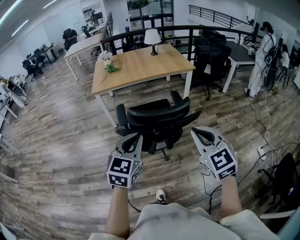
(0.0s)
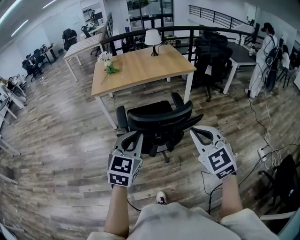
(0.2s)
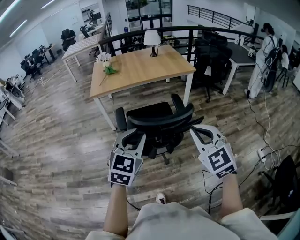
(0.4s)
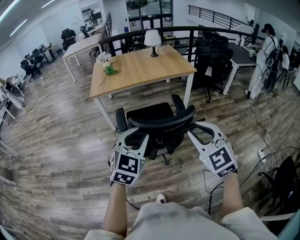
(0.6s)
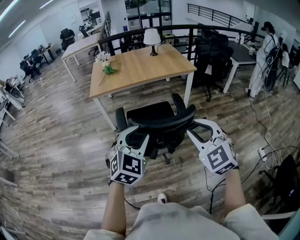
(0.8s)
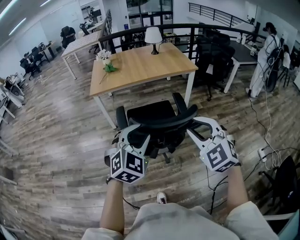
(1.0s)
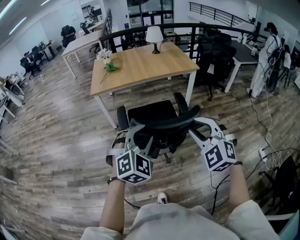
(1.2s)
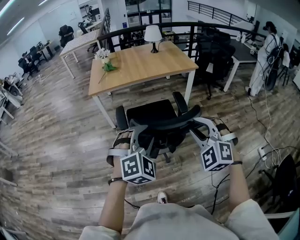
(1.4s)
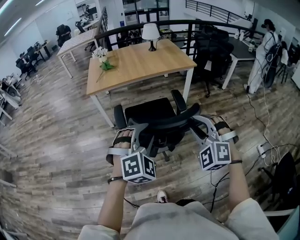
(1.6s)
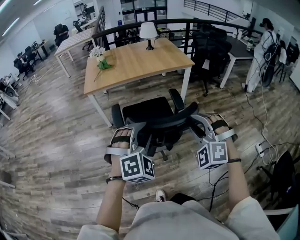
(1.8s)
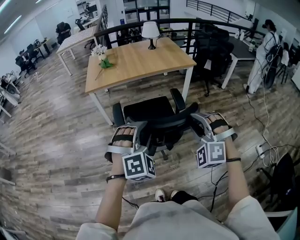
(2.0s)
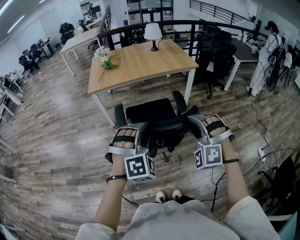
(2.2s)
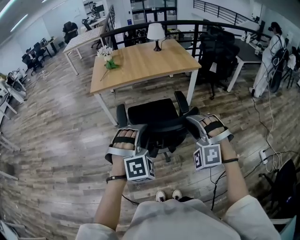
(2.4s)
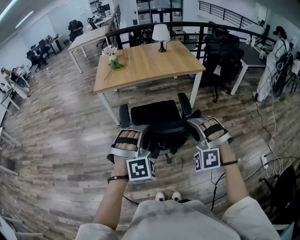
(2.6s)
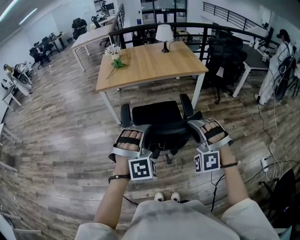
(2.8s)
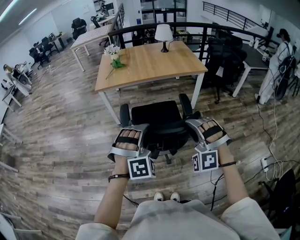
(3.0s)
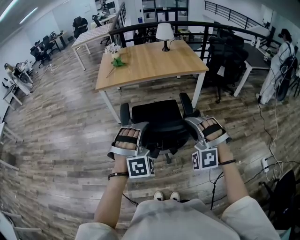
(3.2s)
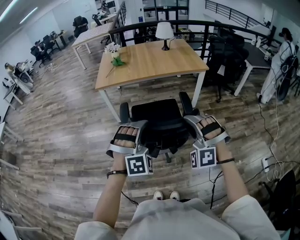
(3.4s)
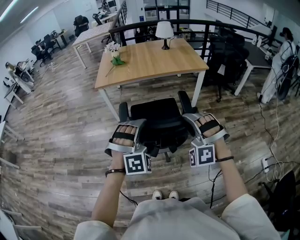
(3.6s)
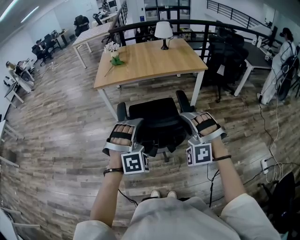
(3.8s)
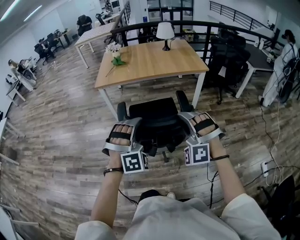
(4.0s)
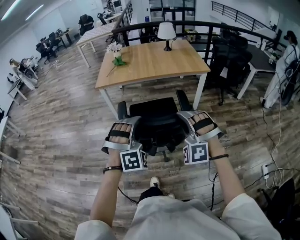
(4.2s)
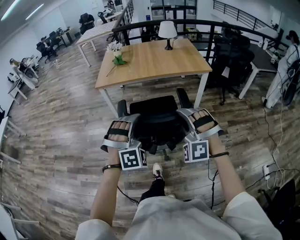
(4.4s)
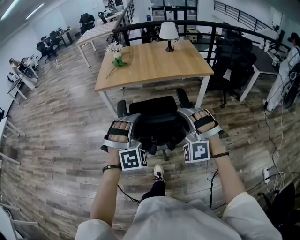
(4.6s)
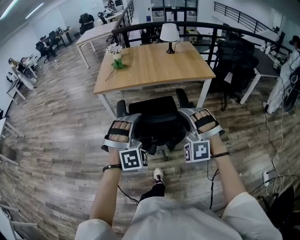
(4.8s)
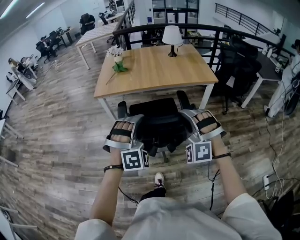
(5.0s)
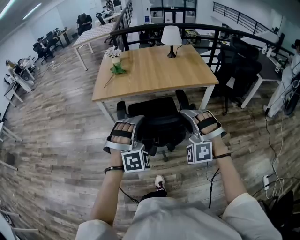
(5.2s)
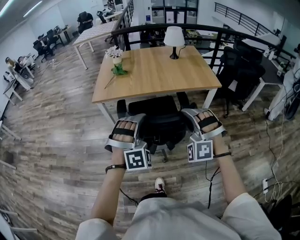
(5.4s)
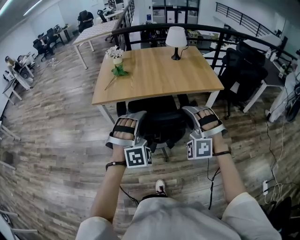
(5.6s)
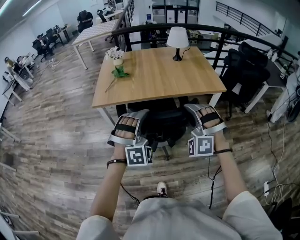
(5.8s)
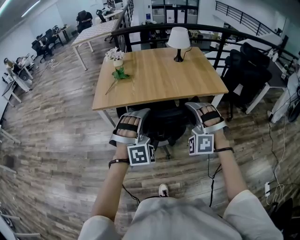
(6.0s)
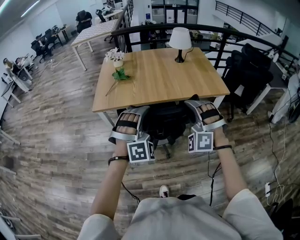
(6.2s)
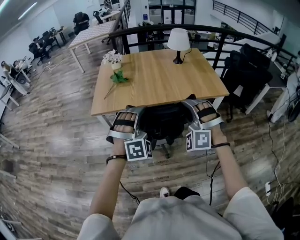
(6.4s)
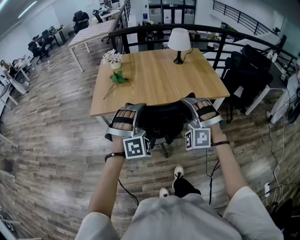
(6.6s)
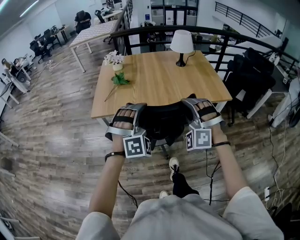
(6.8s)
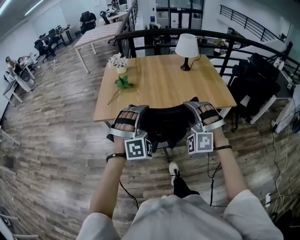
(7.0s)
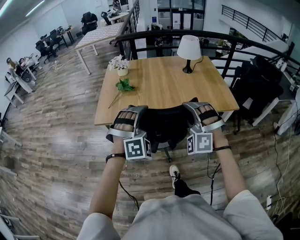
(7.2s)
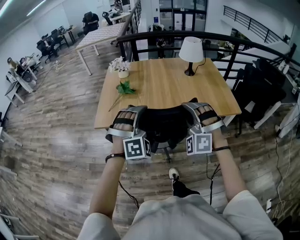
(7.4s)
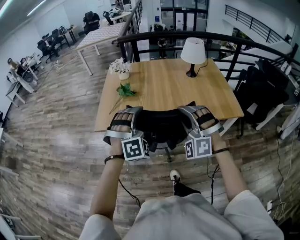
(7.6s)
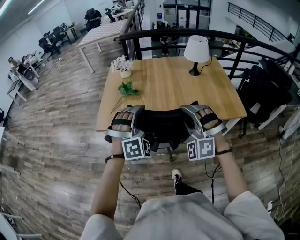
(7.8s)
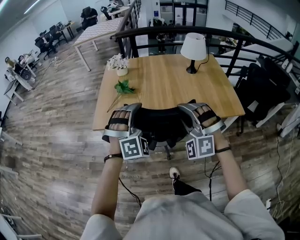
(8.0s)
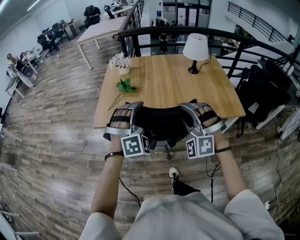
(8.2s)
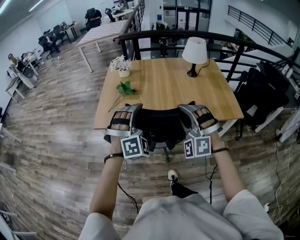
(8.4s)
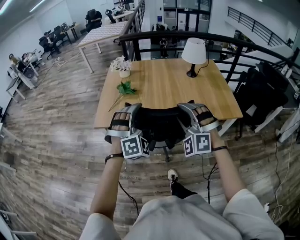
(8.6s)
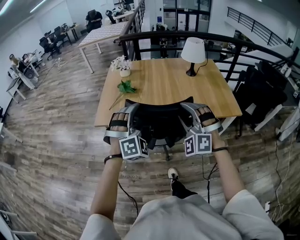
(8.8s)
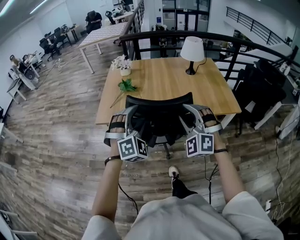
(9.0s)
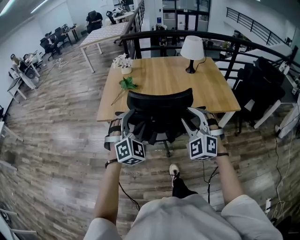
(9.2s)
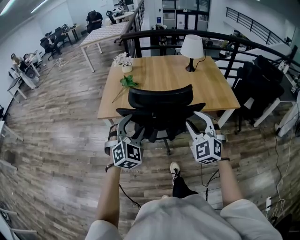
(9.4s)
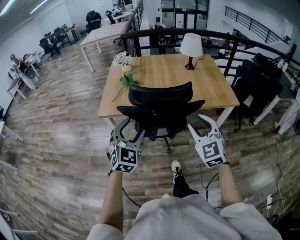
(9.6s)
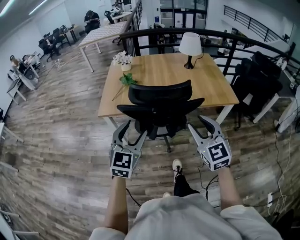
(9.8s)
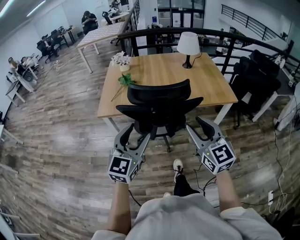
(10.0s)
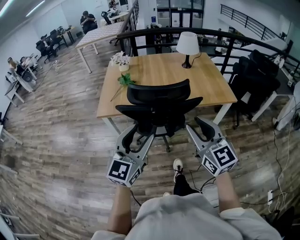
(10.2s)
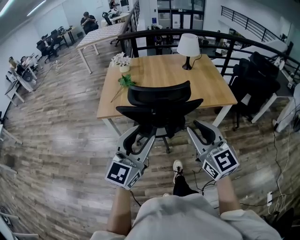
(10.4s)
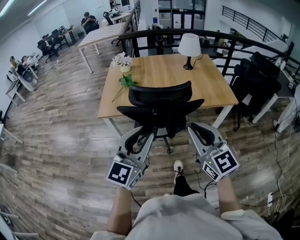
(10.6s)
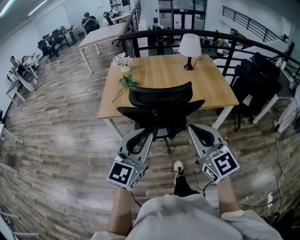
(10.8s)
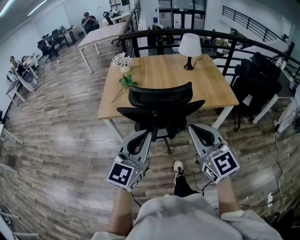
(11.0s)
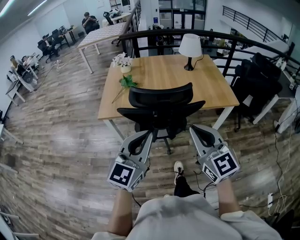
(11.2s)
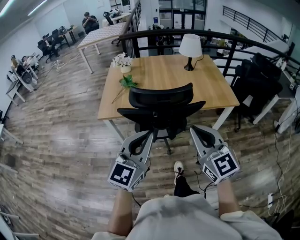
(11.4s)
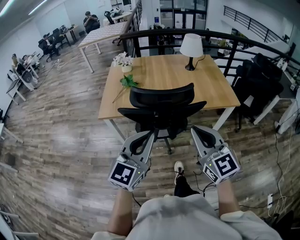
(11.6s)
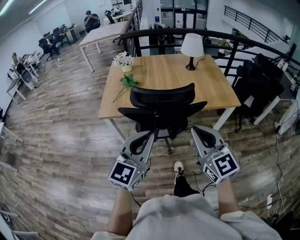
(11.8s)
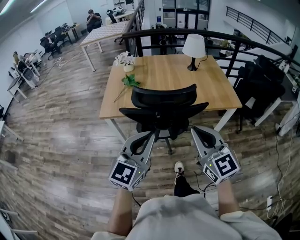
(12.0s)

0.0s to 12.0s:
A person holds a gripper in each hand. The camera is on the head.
0.0s to 1.6s: The two grippers go about 10 cm forward. The left gripper twists approximately 50 degrees clockwise, seen from behind, and opens, while the right gripper twists roughly 50 degrees counterclockwise, seen from behind, and opens its fingers.
1.6s to 3.0s: The right gripper turns by about 20 degrees; the left gripper swivels approximately 20 degrees.
3.0s to 4.4s: Both grippers move forward, approximately 5 cm.
4.4s to 6.0s: Both grippers travel together forward, about 30 cm.
6.0s to 7.6s: The grippers both shift forward by approximately 20 cm.
7.6s to 9.0s: The left gripper moves backward, some 5 cm, and opens its fingers; the right gripper changes place by approximately 5 cm.
9.0s to 10.4s: Both grippers move backward, some 15 cm. The right gripper rotates around the line of its fingers by some 60 degrees, clockwise from behind. The left gripper rotates around the line of its fingers by some 60 degrees, counterclockwise from behind.
10.4s to 12.0s: The left gripper closes; the right gripper closes.

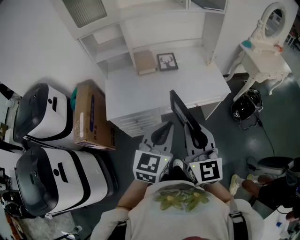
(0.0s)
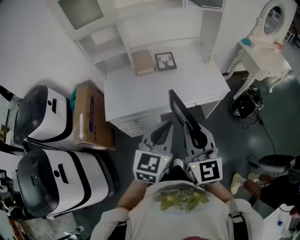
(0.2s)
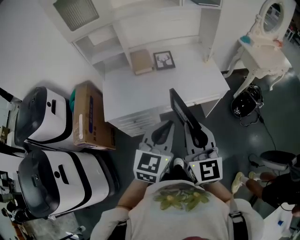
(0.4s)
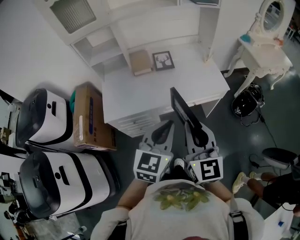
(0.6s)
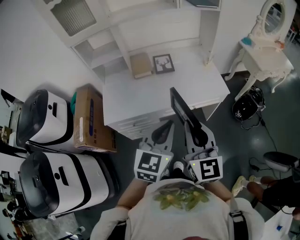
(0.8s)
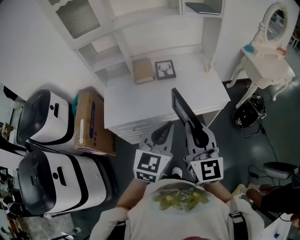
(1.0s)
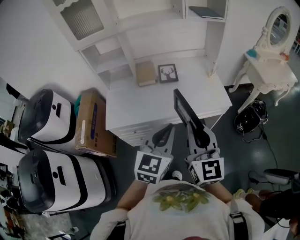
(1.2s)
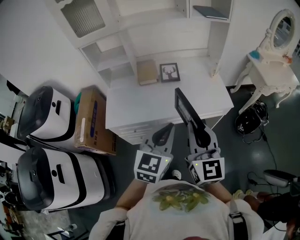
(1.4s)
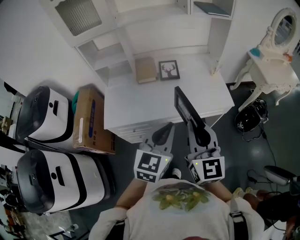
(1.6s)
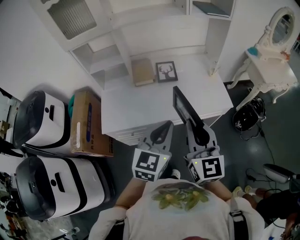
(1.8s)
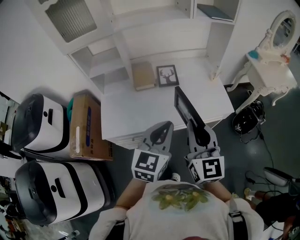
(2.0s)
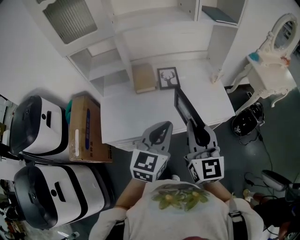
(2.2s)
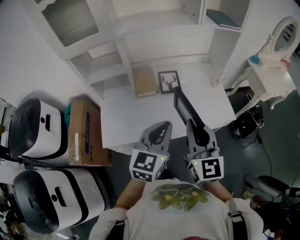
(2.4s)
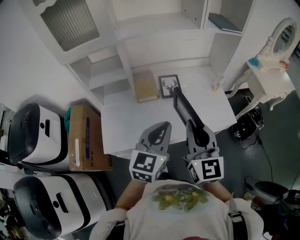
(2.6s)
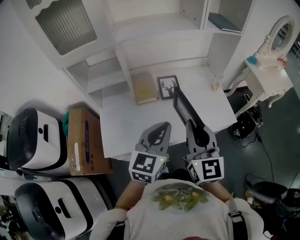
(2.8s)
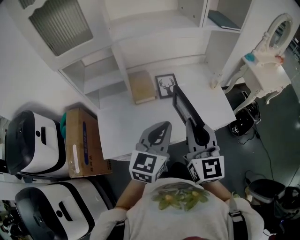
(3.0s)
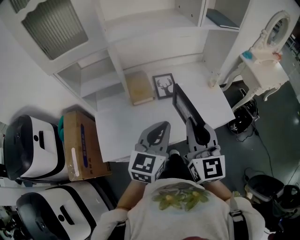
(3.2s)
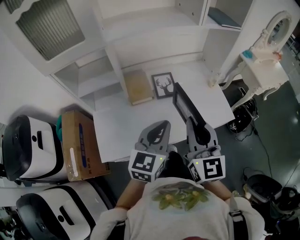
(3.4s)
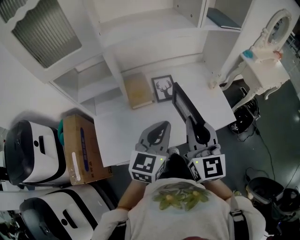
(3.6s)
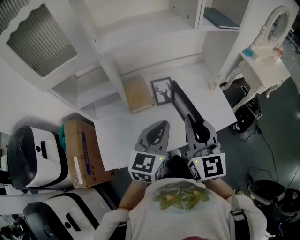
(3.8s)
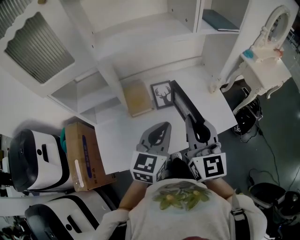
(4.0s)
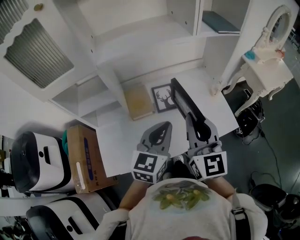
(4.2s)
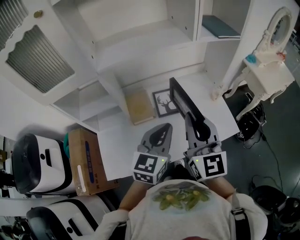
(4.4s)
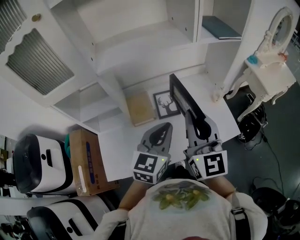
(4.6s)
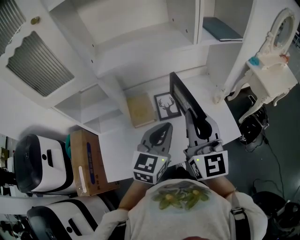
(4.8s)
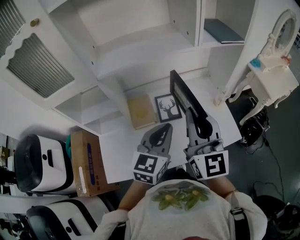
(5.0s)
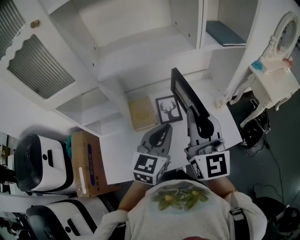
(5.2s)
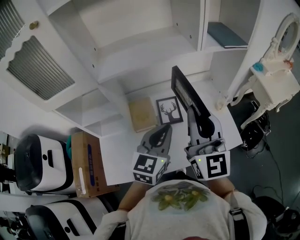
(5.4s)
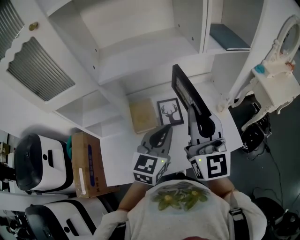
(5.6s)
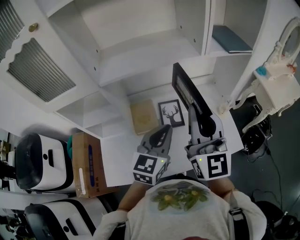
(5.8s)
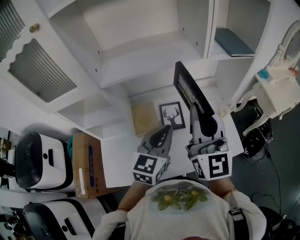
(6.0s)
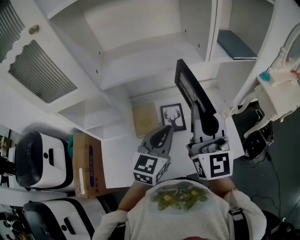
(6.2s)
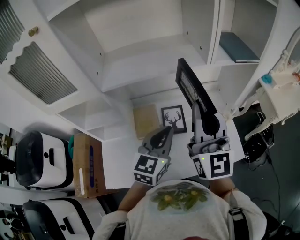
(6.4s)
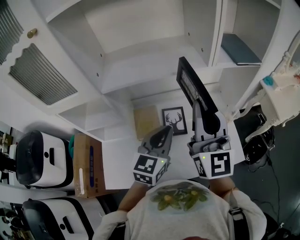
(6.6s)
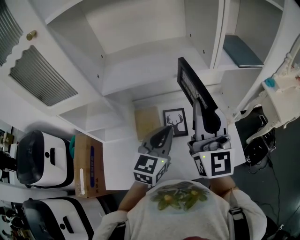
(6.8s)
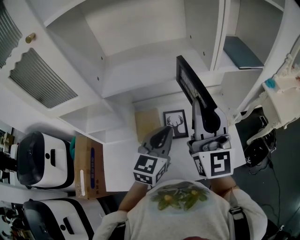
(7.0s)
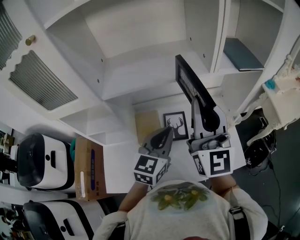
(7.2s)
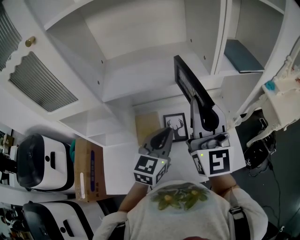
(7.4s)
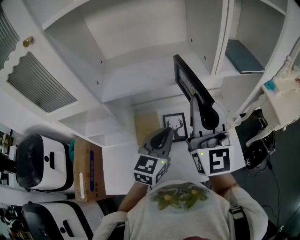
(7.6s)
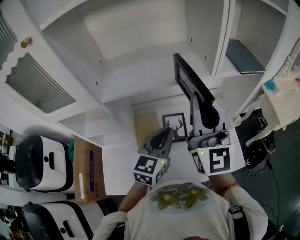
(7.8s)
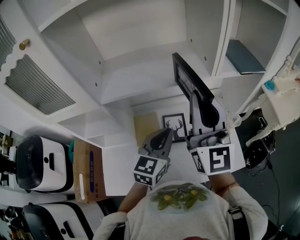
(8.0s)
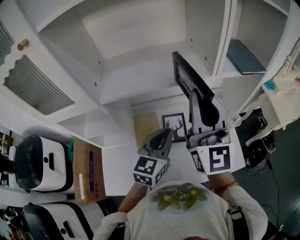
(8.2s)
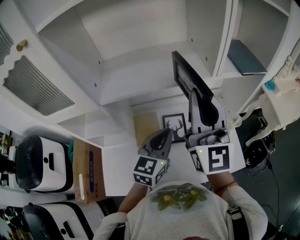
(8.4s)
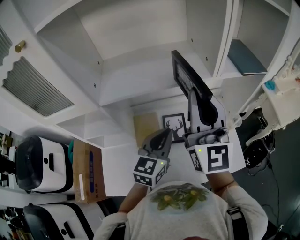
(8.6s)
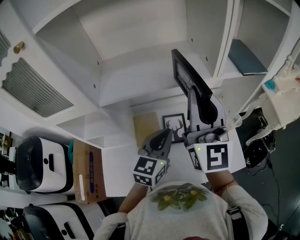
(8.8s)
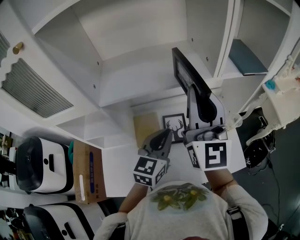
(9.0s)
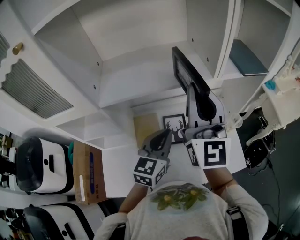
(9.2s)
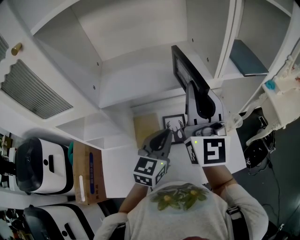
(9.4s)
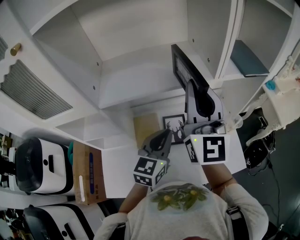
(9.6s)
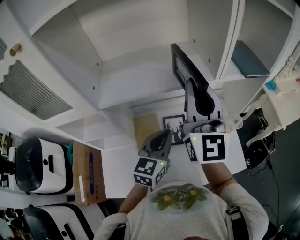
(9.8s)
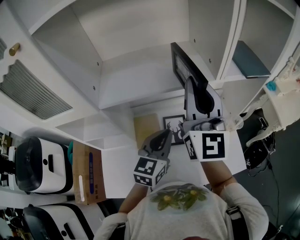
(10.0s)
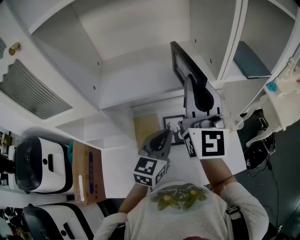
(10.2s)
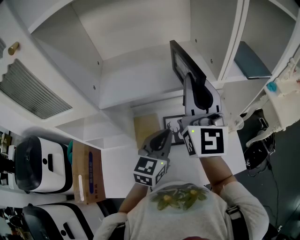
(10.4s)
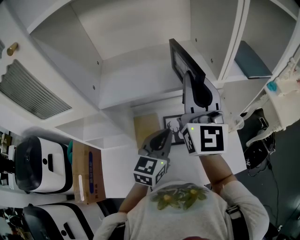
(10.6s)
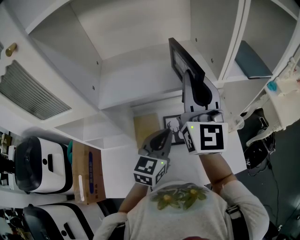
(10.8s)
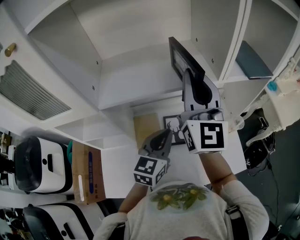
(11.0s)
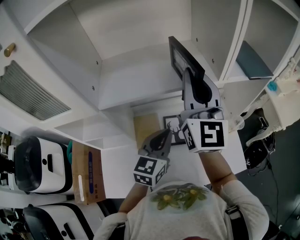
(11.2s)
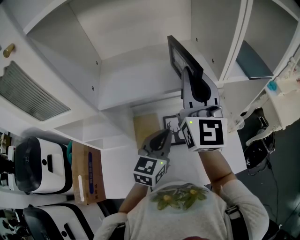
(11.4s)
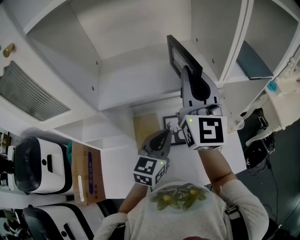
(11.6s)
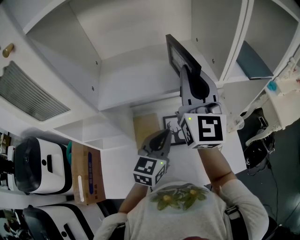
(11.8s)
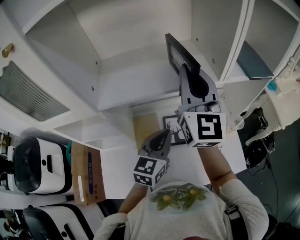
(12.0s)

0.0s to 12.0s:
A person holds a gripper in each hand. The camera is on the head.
0.0s to 1.6s: The left gripper is displaced forward by roughly 10 cm. Meanwhile the right gripper is displaced forward and to the right by some 10 cm.
1.6s to 3.0s: Both grippers move forward and to the left, roughly 20 cm.
3.0s to 4.4s: Both grippers move forward, some 15 cm.
4.4s to 6.0s: The left gripper is displaced forward by some 5 cm; the right gripper goes about 10 cm forward and upward.
6.0s to 7.6s: Both grippers move forward, about 5 cm.
7.6s to 9.0s: The grippers stay close to where they were, moving slightly.
9.0s to 10.4s: The grippers move only a little.
10.4s to 12.0s: The grippers move only a little.
